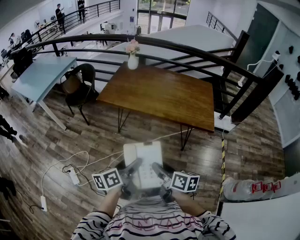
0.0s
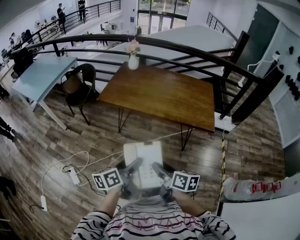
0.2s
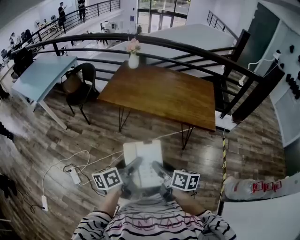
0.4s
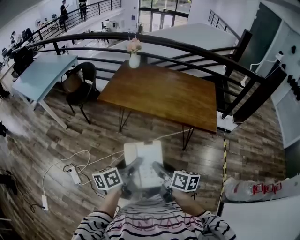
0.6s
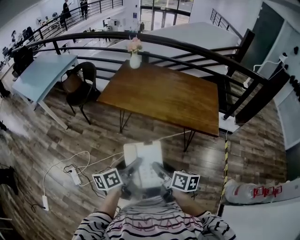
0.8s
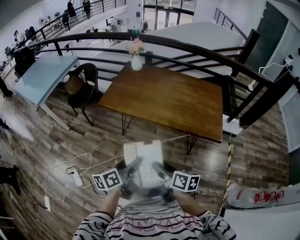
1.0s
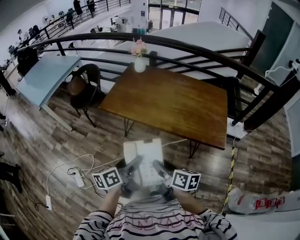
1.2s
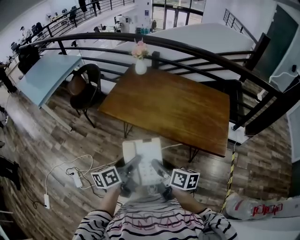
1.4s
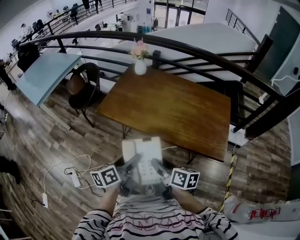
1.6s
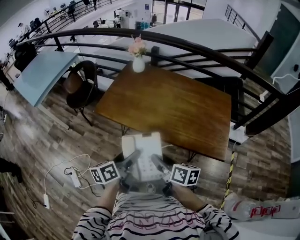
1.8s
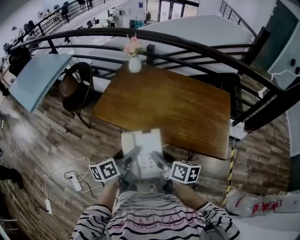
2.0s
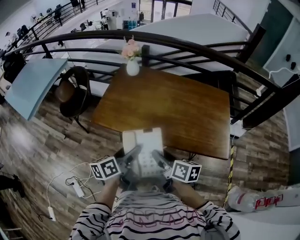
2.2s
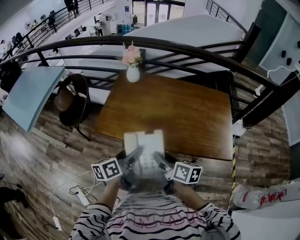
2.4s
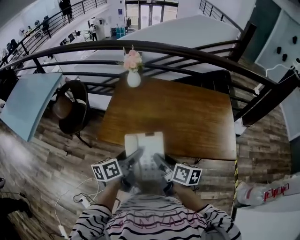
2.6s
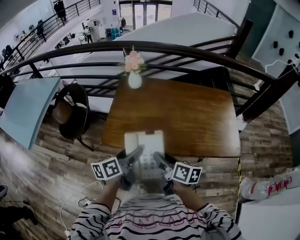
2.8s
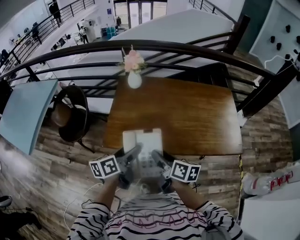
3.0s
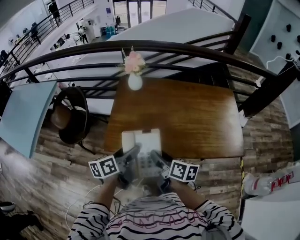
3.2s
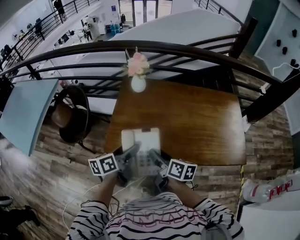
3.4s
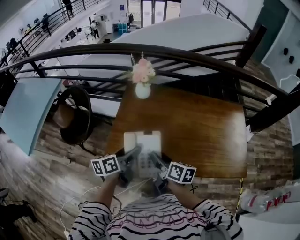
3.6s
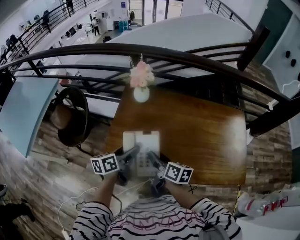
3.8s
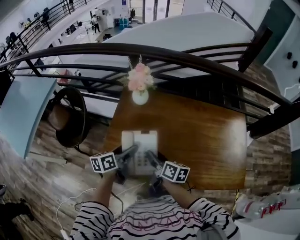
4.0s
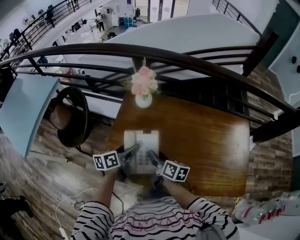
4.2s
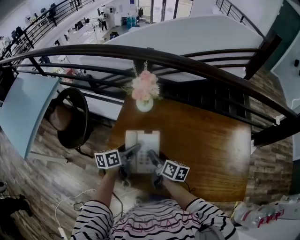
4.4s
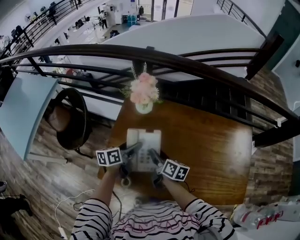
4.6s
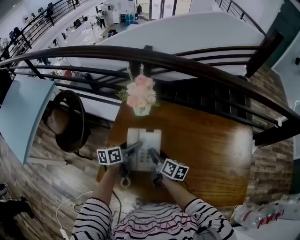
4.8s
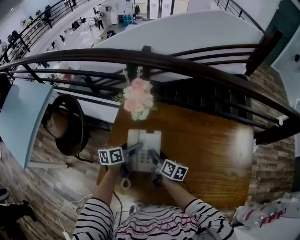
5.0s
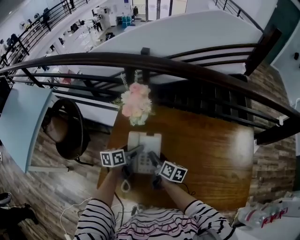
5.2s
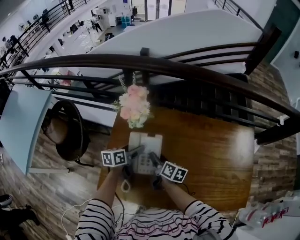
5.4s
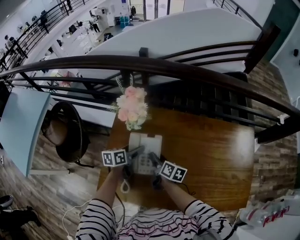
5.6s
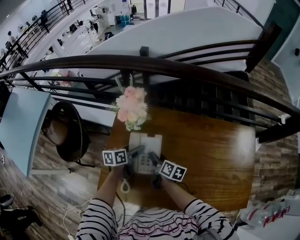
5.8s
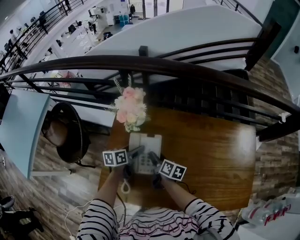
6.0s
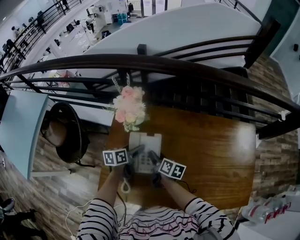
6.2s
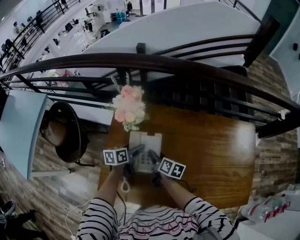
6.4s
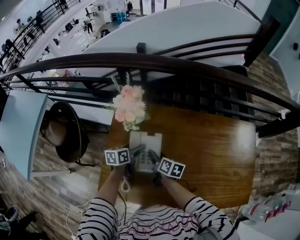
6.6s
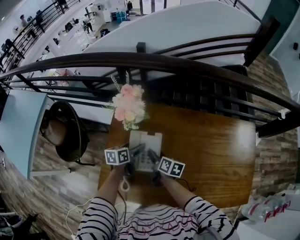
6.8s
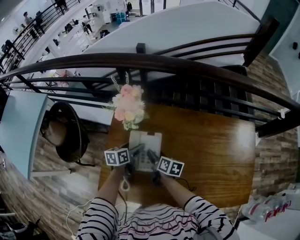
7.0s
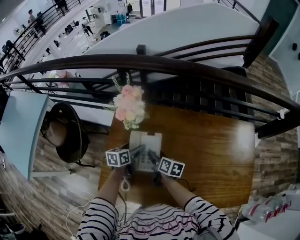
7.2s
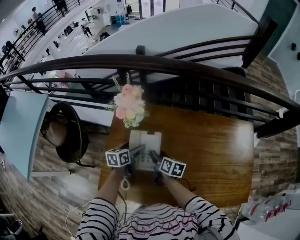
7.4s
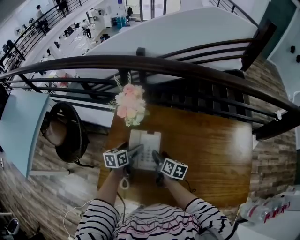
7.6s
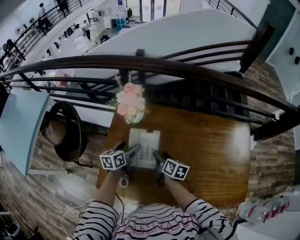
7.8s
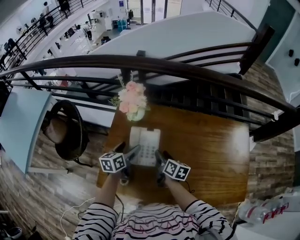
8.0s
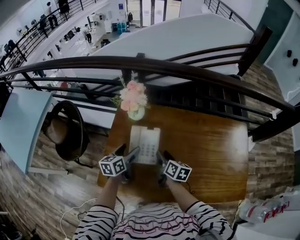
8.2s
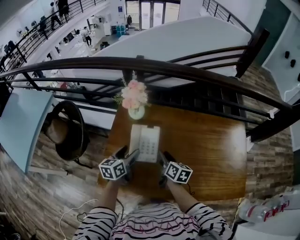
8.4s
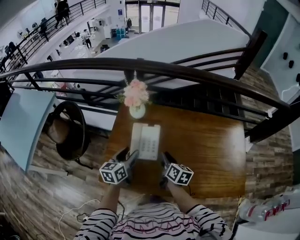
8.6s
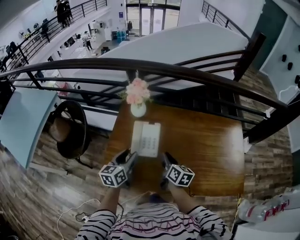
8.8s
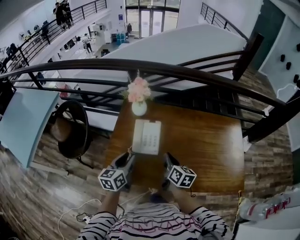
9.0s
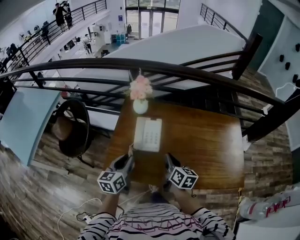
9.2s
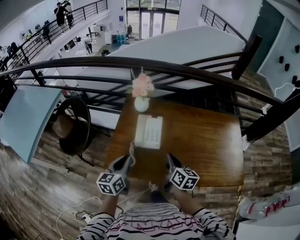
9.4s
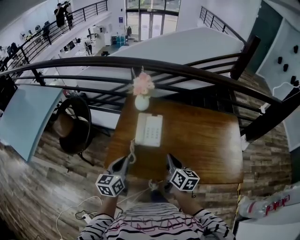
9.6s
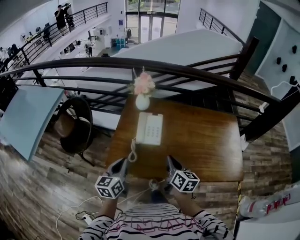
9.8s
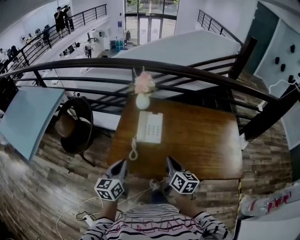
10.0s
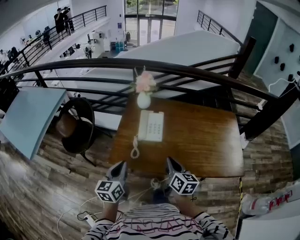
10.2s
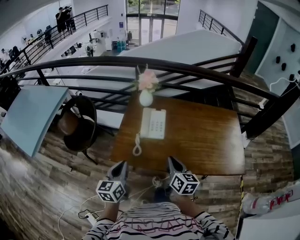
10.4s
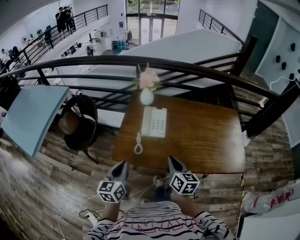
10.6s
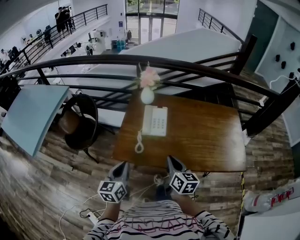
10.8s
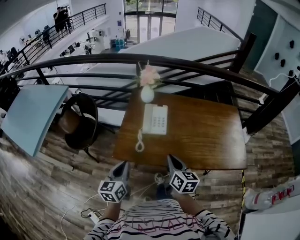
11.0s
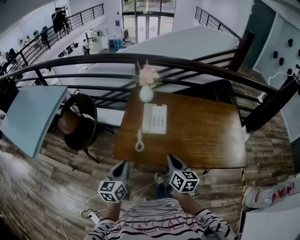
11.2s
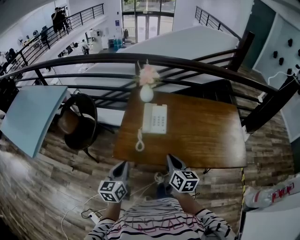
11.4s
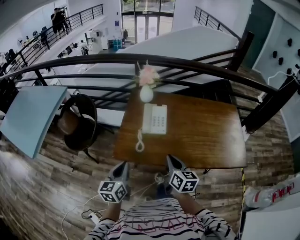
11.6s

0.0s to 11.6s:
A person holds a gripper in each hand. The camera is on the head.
0.0s to 1.4s: The two grippers go about 25 cm forward.
1.4s to 2.8s: Both grippers travel together forward and to the left, some 35 cm.
2.8s to 4.4s: The grippers both shift forward by about 40 cm.
4.4s to 5.8s: The grippers both shift forward and downward by approximately 15 cm.
5.8s to 7.2s: The grippers stay close to where they were, moving slightly.
7.2s to 8.8s: The two grippers go some 25 cm backward and upward. The left gripper swivels approximately 20 degrees, and closes; the right gripper closes up.
8.8s to 10.2s: The two grippers go roughly 25 cm backward. The left gripper closes.
10.2s to 11.6s: The left gripper moves approximately 5 cm; the right gripper moves about 5 cm.

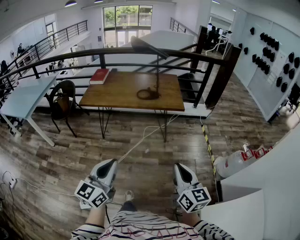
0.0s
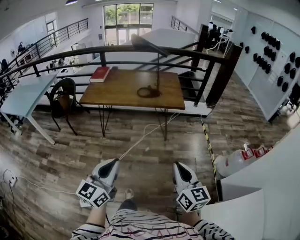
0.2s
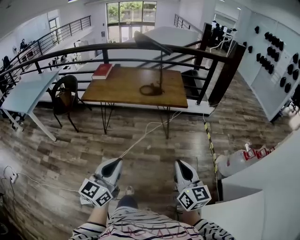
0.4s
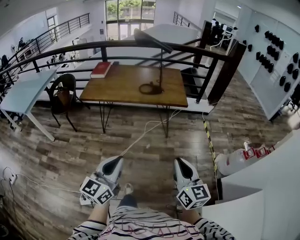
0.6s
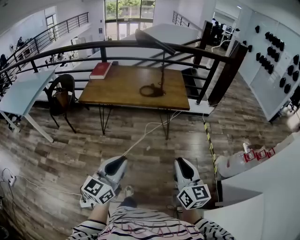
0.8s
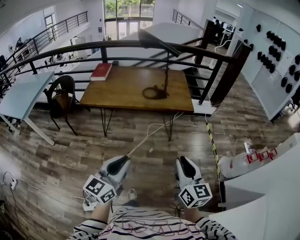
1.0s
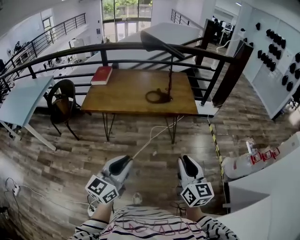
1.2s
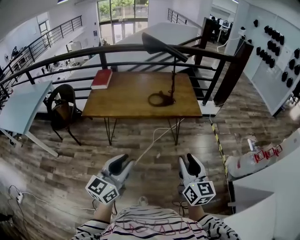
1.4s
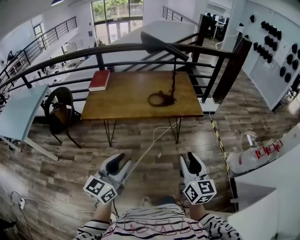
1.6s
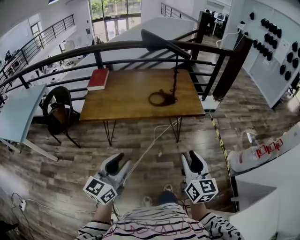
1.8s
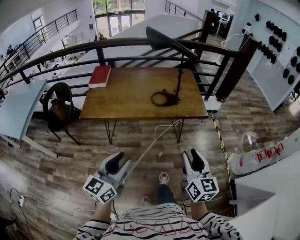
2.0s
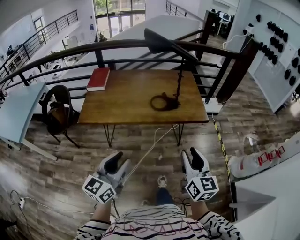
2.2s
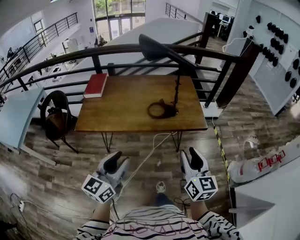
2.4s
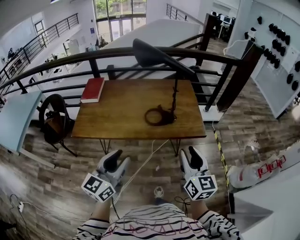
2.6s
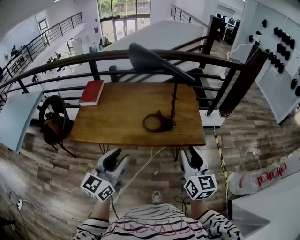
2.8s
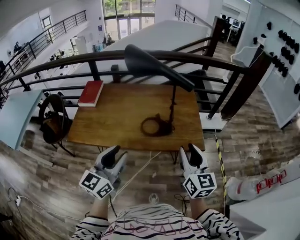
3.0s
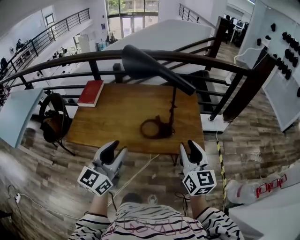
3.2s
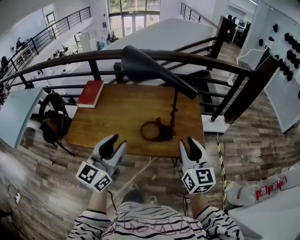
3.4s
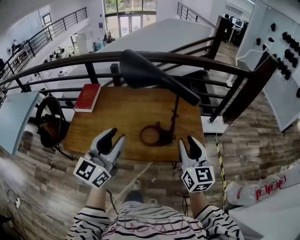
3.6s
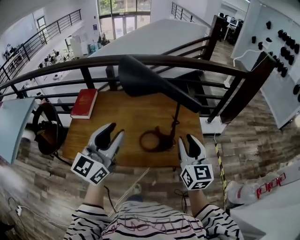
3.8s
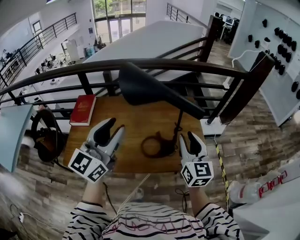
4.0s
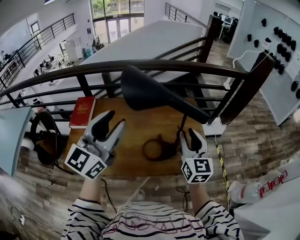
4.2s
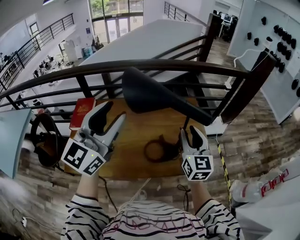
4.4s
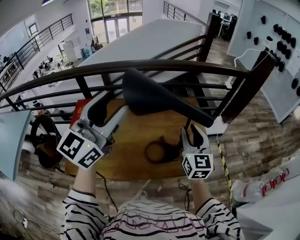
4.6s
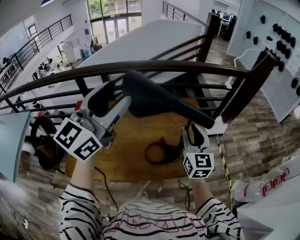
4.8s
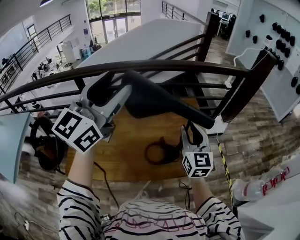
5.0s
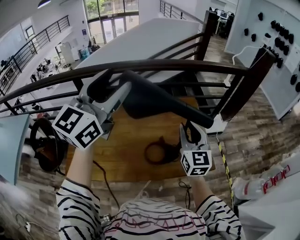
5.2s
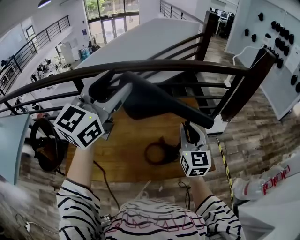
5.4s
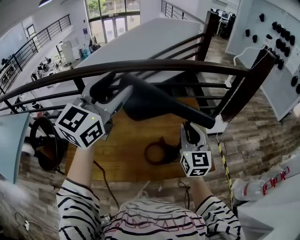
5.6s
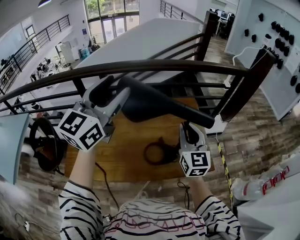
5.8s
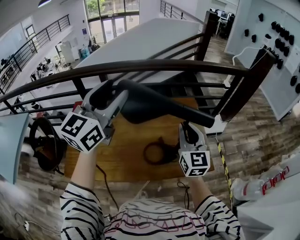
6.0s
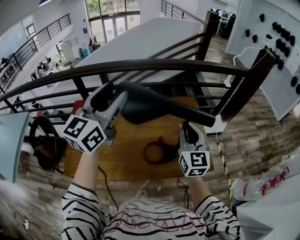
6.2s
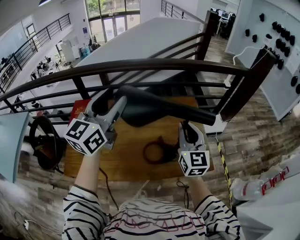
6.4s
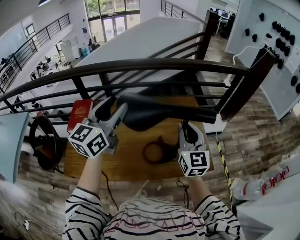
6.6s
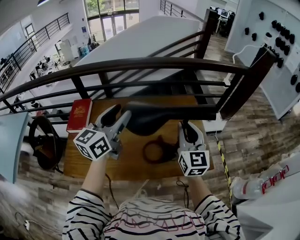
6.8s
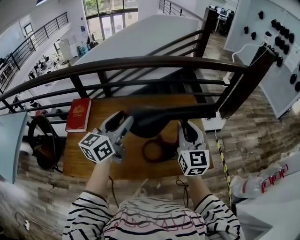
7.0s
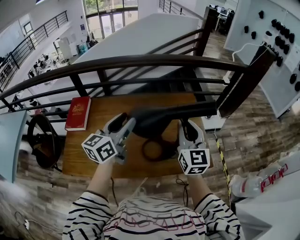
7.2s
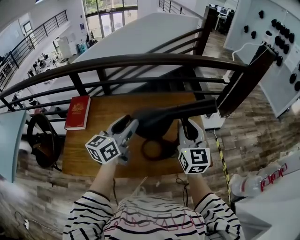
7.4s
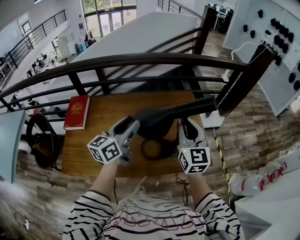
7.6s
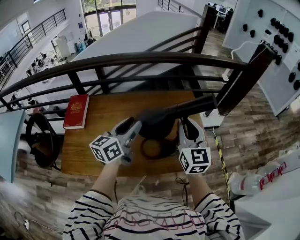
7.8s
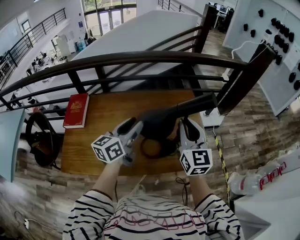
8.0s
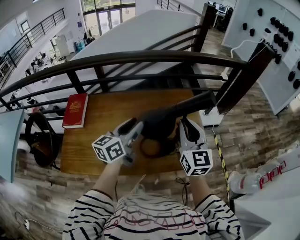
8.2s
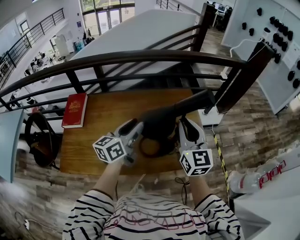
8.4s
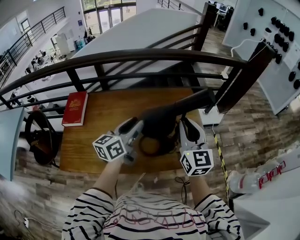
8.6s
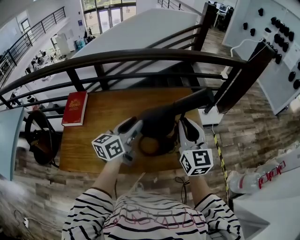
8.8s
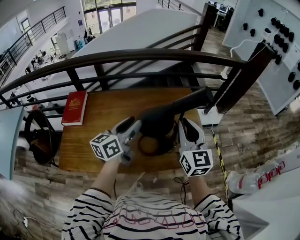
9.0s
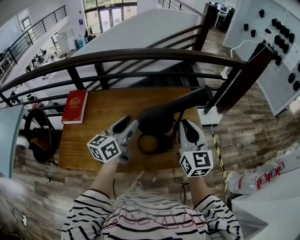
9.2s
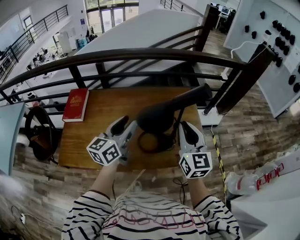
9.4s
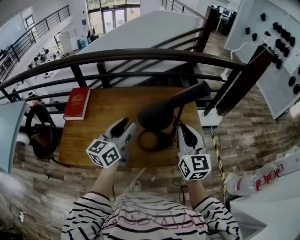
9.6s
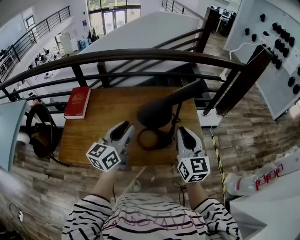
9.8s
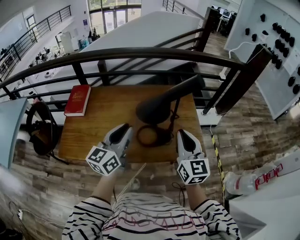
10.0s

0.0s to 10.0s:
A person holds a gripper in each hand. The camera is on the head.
0.0s to 1.4s: The two grippers go approximately 30 cm forward and to the left. The right gripper opens up; the left gripper opens up.
1.4s to 2.8s: Both grippers move forward, about 35 cm.
2.8s to 4.2s: The right gripper is displaced forward by roughly 30 cm. Meanwhile the left gripper moves forward and upward, some 35 cm.
4.2s to 5.8s: The left gripper shifts about 15 cm forward and upward, while the right gripper is displaced forward by about 5 cm.
5.8s to 7.2s: The left gripper moves downward, roughly 20 cm, and turns by roughly 30 degrees.
7.2s to 8.6s: The left gripper shifts some 5 cm downward.
8.6s to 10.0s: The two grippers go approximately 10 cm backward.

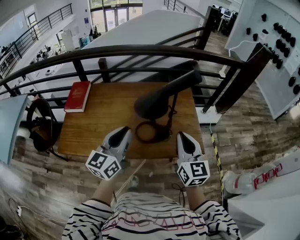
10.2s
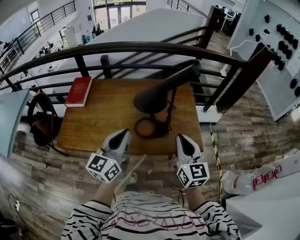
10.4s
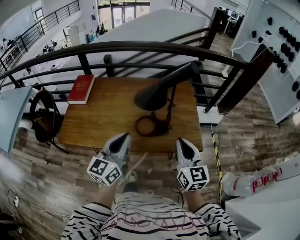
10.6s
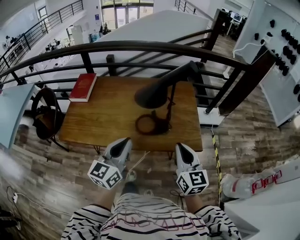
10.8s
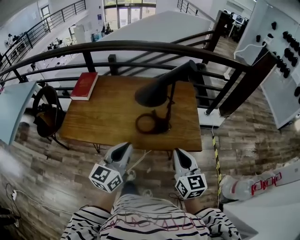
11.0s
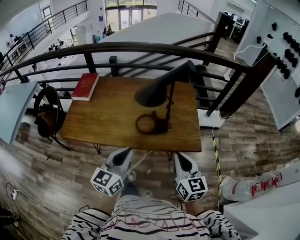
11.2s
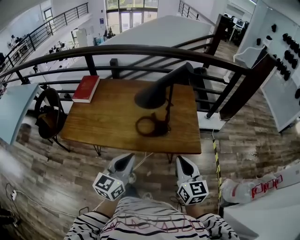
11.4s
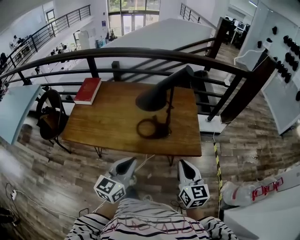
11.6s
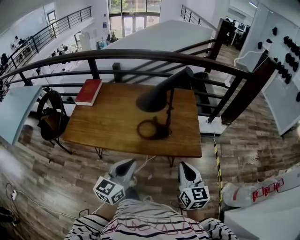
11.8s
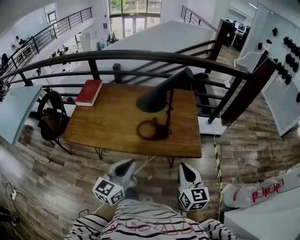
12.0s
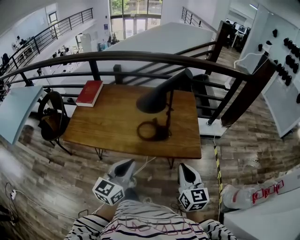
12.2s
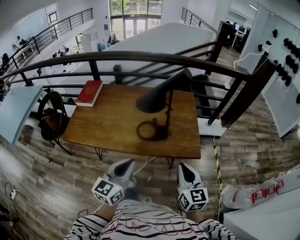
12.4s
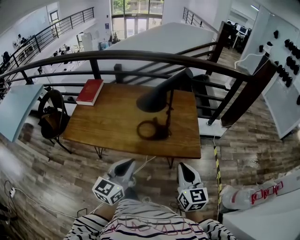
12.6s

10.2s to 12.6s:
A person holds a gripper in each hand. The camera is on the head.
10.2s to 11.4s: Both grippers move backward and to the right, roughly 15 cm.
11.4s to 12.6s: The grippers move only a little.
